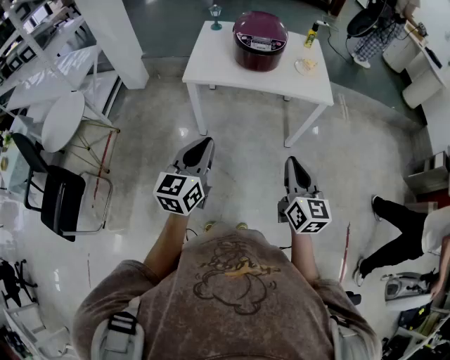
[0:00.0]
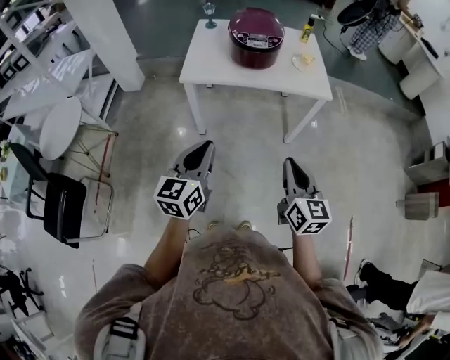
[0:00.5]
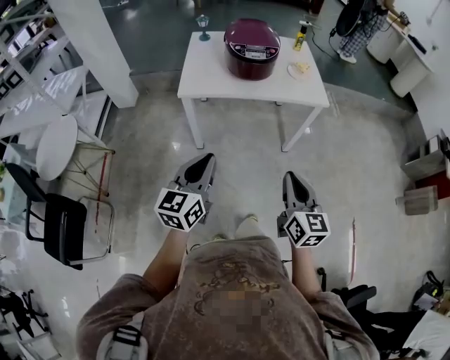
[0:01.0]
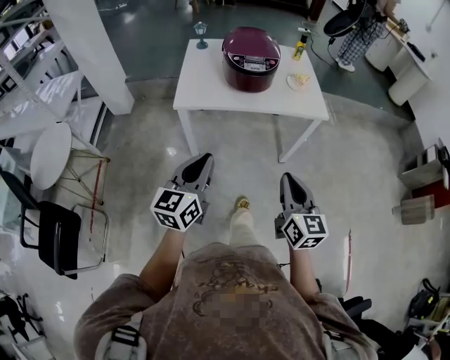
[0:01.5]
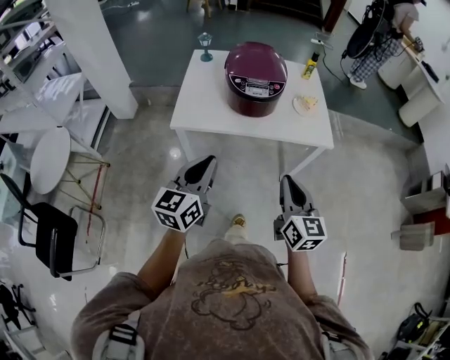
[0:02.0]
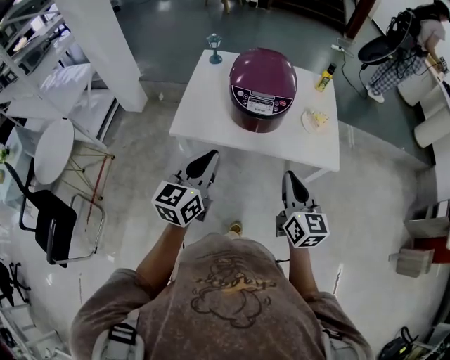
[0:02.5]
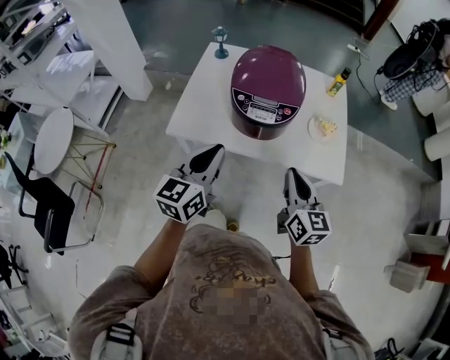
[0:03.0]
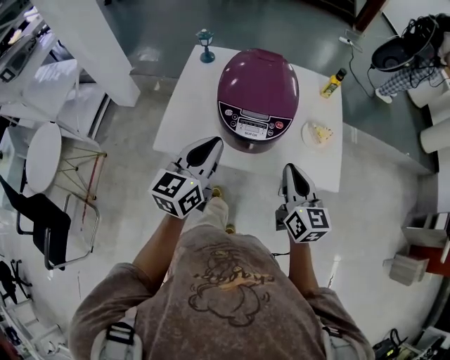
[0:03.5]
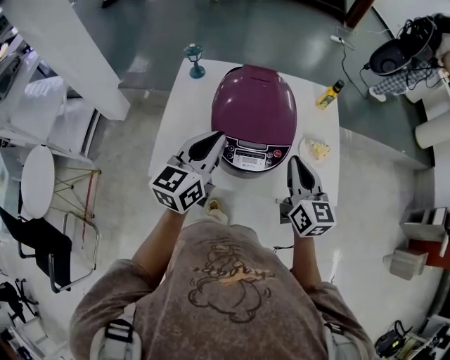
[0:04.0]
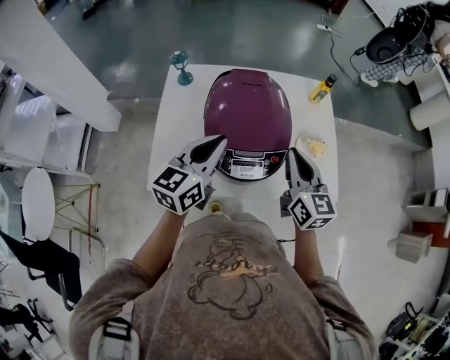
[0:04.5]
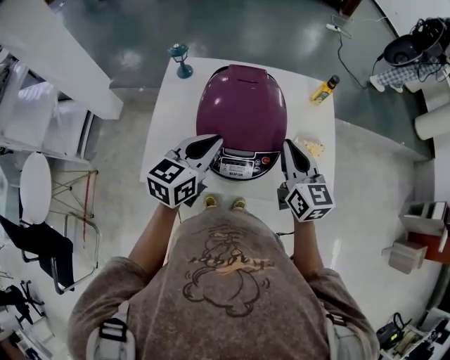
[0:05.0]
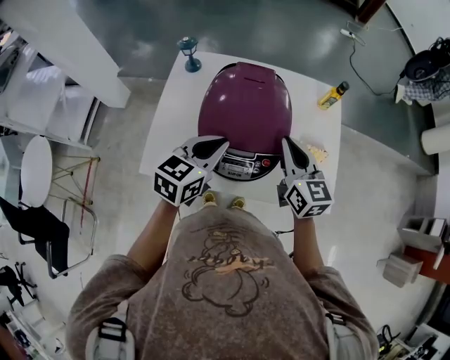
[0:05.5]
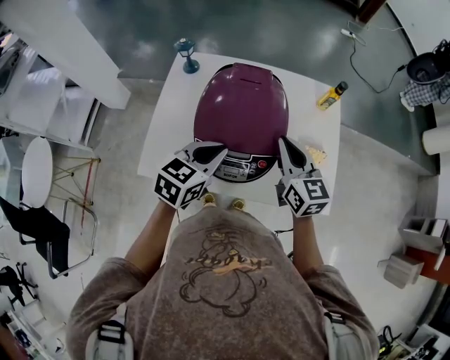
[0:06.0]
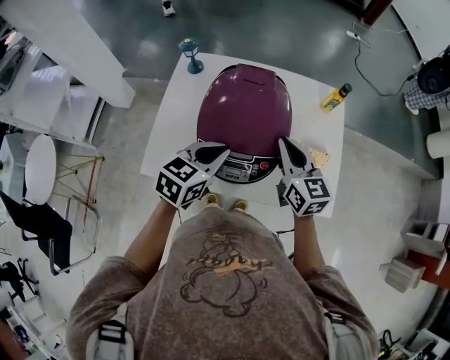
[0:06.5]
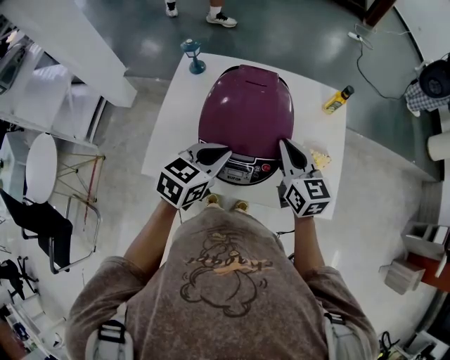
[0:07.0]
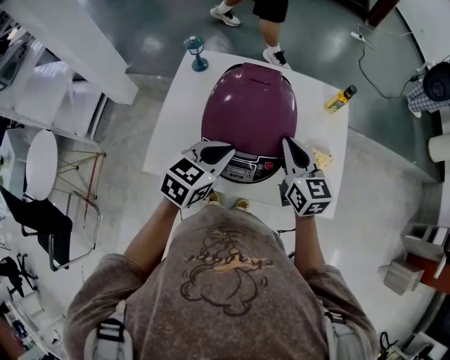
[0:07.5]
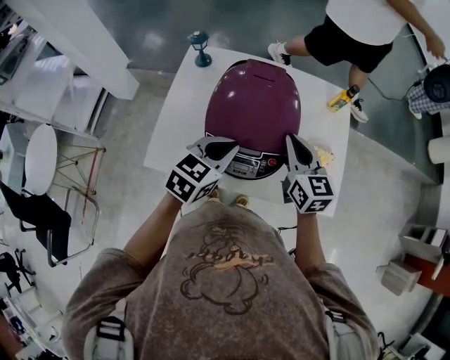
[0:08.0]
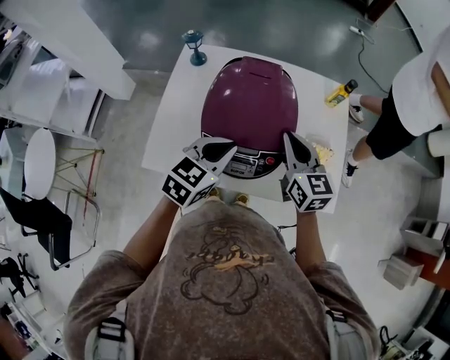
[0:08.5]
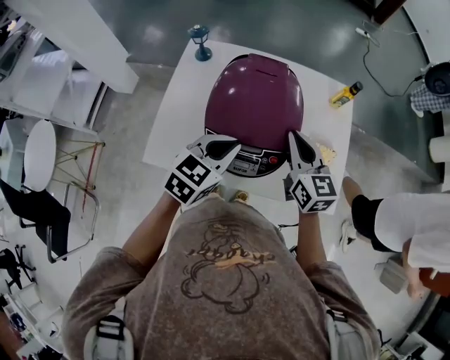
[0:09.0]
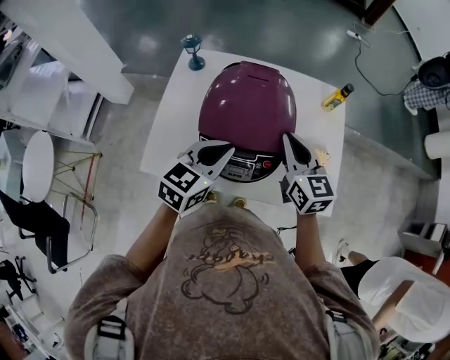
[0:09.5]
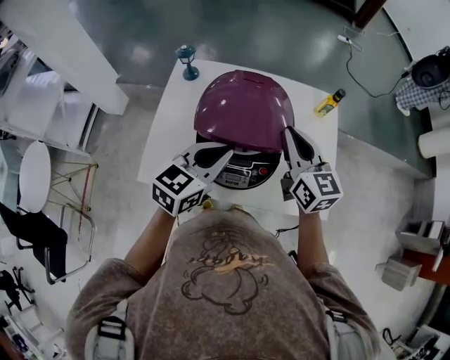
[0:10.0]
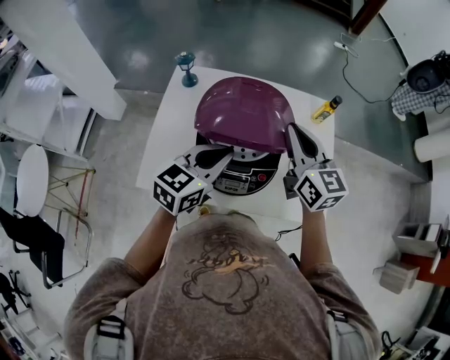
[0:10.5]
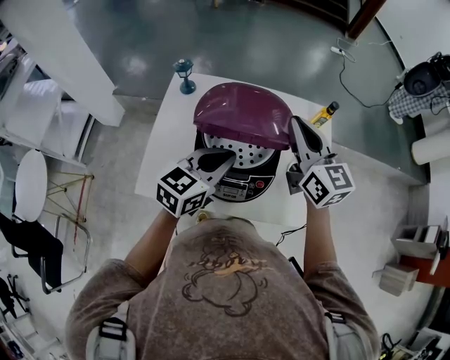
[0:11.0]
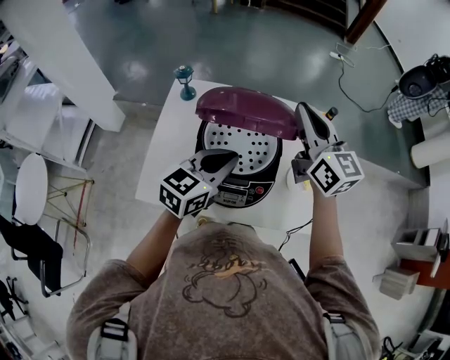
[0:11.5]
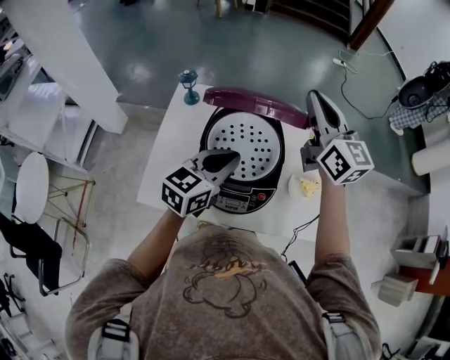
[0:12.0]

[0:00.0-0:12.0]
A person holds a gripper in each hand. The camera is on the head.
0:00.0 to 0:02.0: Both grippers move forward, about 20 cm.
0:02.0 to 0:04.0: The two grippers go roughly 35 cm forward.
0:04.0 to 0:06.0: The left gripper travels downward and to the right by some 10 cm, and swivels roughly 30 degrees; the right gripper travels forward by about 10 cm.
0:06.0 to 0:08.0: The grippers stay close to where they were, moving slightly.
0:08.0 to 0:10.0: The right gripper goes some 5 cm upward.
0:10.0 to 0:12.0: The right gripper shifts about 15 cm upward and forward.

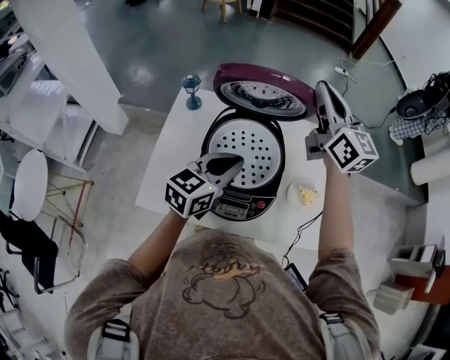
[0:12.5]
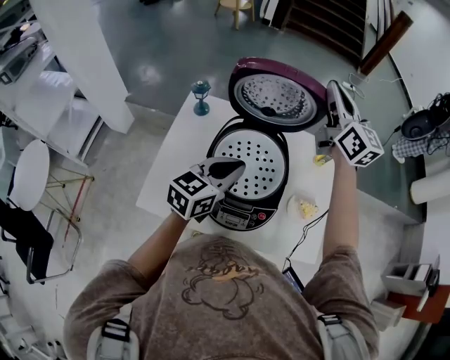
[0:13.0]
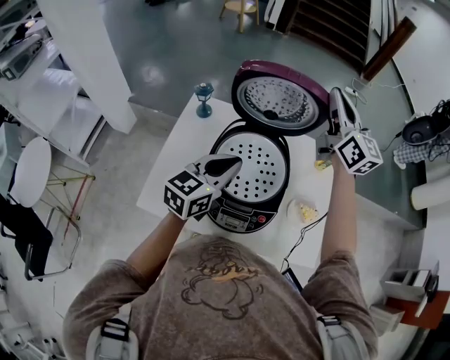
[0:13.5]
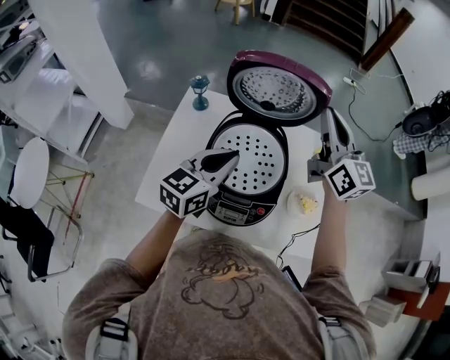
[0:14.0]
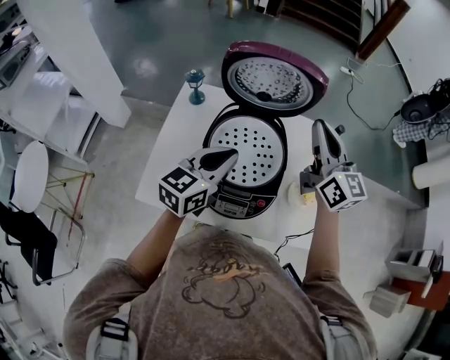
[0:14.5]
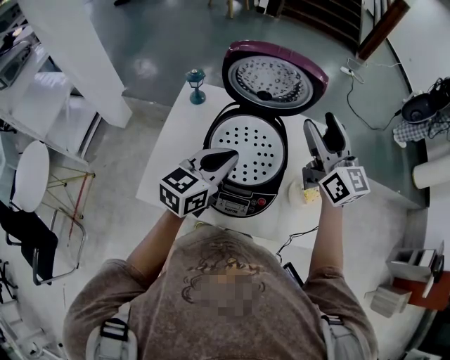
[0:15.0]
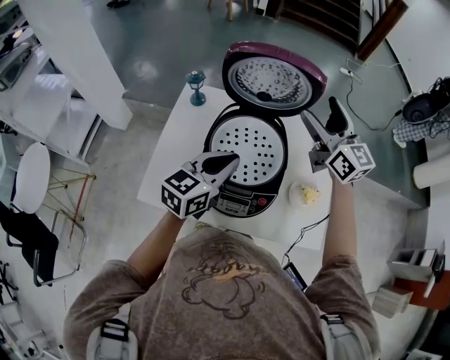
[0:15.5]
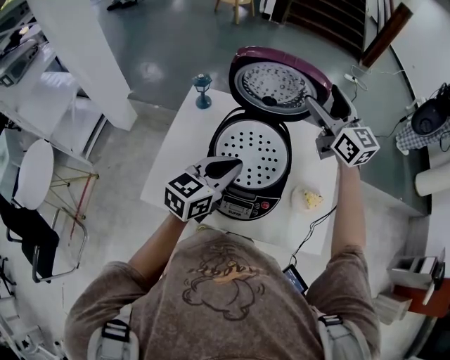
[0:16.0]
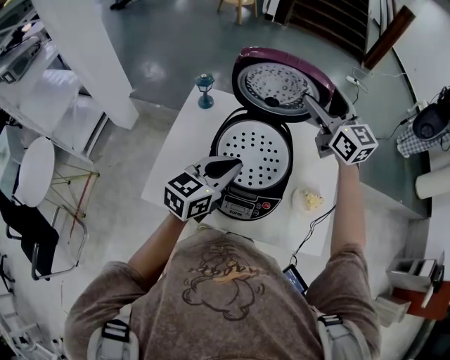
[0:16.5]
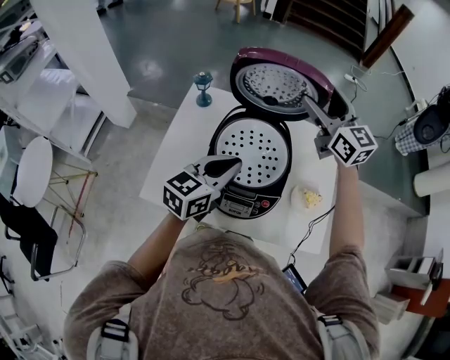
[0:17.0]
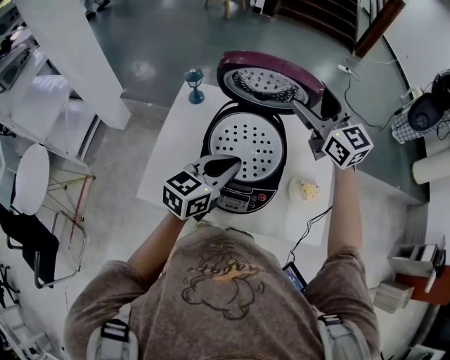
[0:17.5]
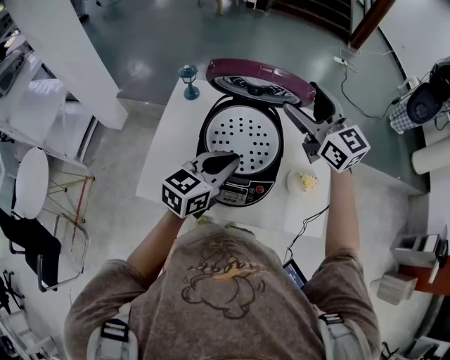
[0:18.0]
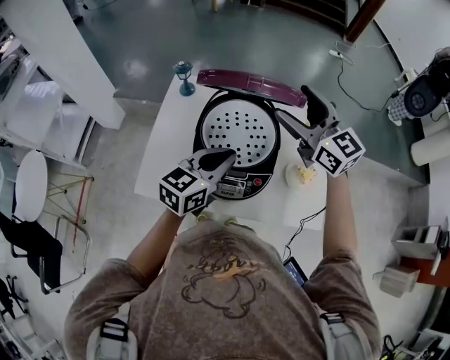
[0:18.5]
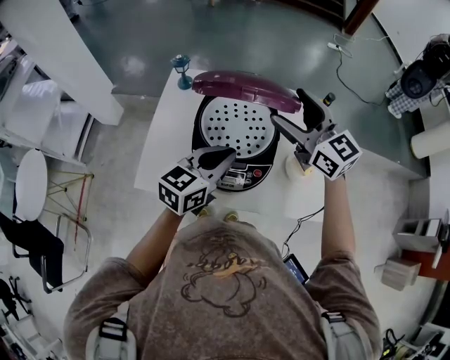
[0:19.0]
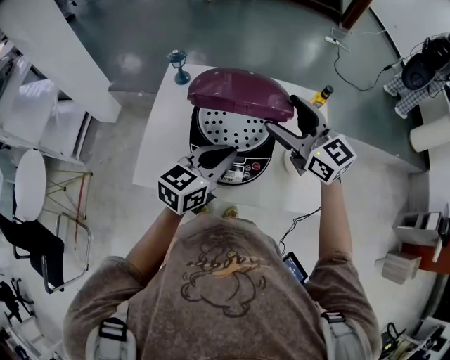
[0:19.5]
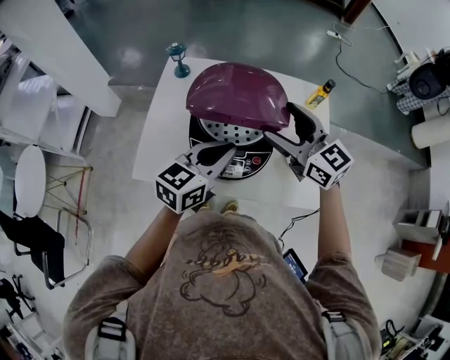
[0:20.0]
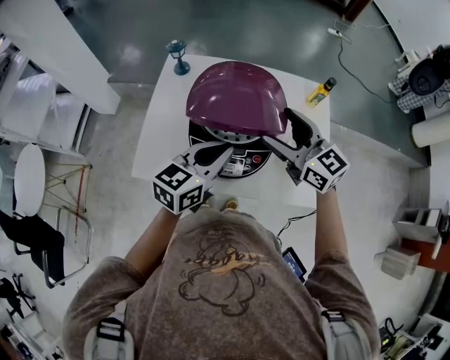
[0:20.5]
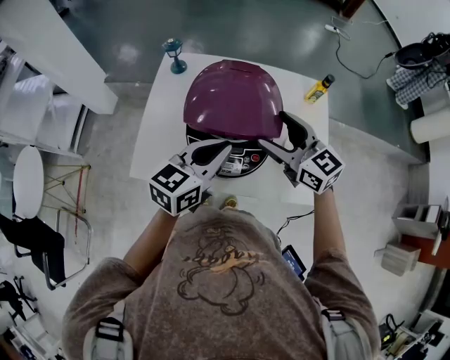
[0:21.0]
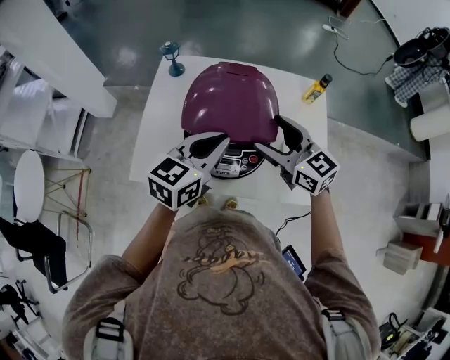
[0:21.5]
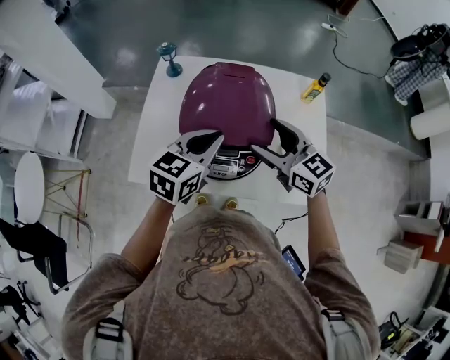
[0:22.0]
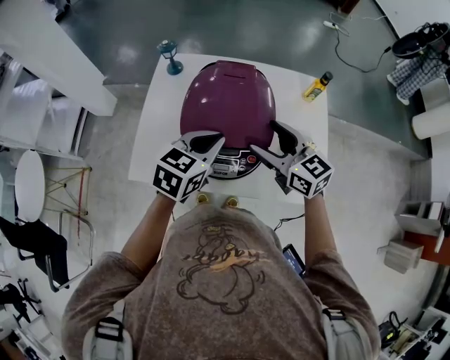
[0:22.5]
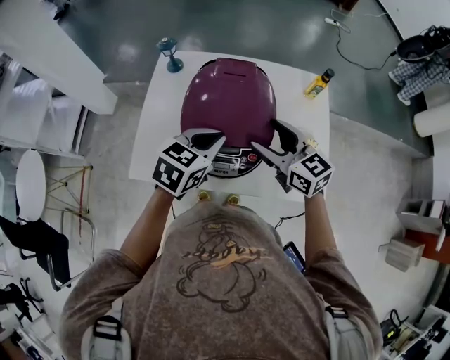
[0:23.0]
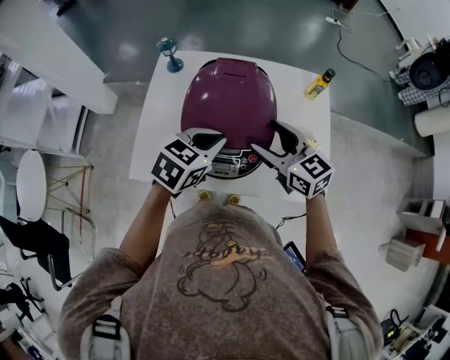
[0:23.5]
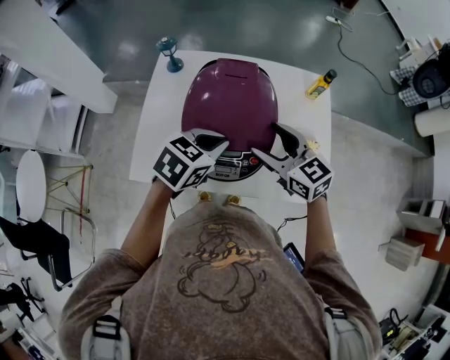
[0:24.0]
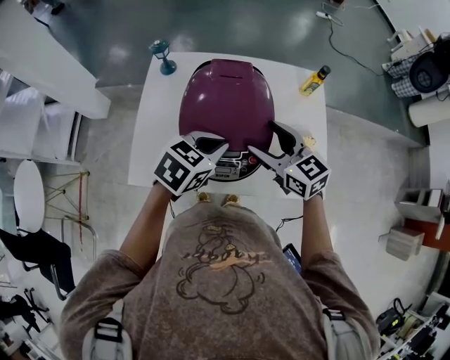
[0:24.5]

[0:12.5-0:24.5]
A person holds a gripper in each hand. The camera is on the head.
0:12.5 to 0:14.5: The right gripper heads downward and backward, covering roughly 10 cm.
0:14.5 to 0:16.5: The right gripper shifts roughly 10 cm forward, and opens its fingers.
0:16.5 to 0:18.5: The right gripper heads backward, covering approximately 10 cm.
0:18.5 to 0:20.5: The right gripper travels downward and backward by some 15 cm.
0:20.5 to 0:22.5: The right gripper goes about 5 cm downward.
0:22.5 to 0:24.5: The grippers make only small movements.

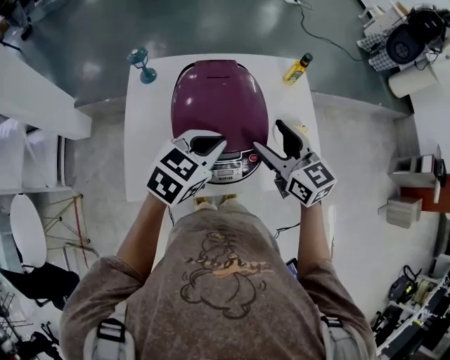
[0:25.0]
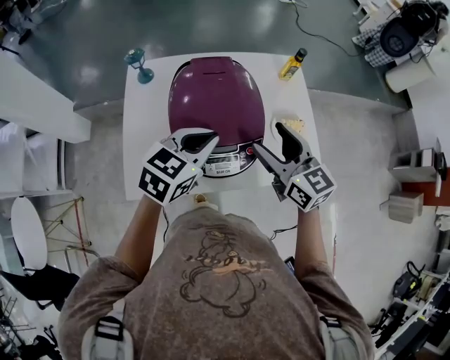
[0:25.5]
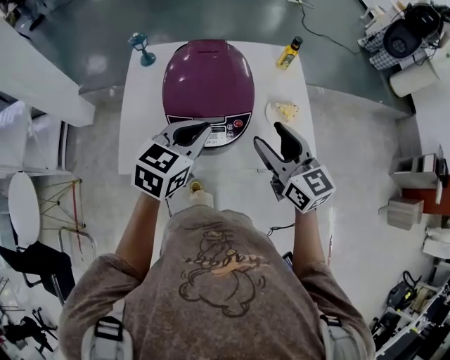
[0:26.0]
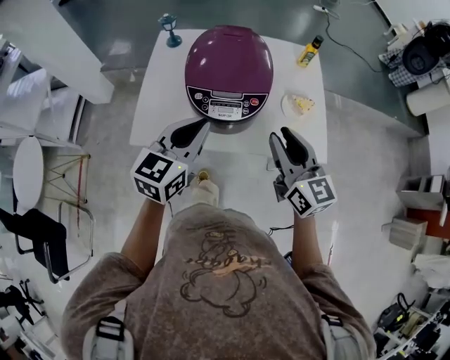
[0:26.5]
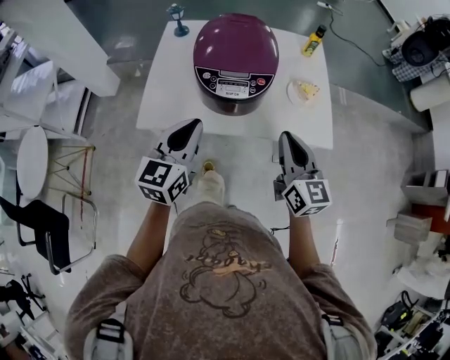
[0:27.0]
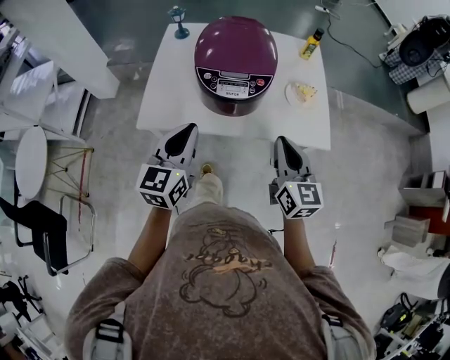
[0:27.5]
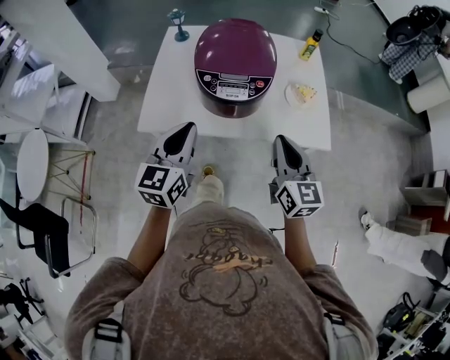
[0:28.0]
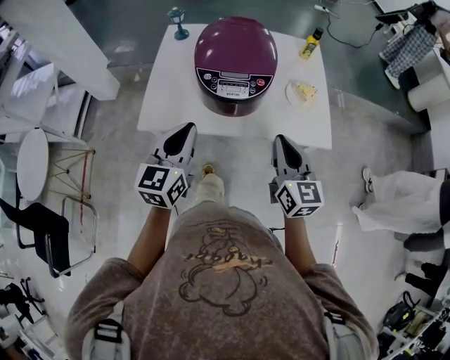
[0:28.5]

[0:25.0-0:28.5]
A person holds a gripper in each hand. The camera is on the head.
0:25.0 to 0:27.0: The two grippers go roughly 20 cm backward. The right gripper closes. The left gripper turns by approximately 40 degrees.
0:27.0 to 0:28.5: The grippers stay close to where they were, moving slightly.
